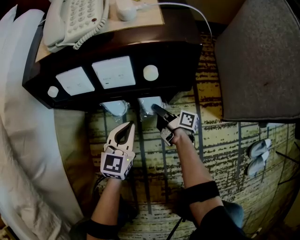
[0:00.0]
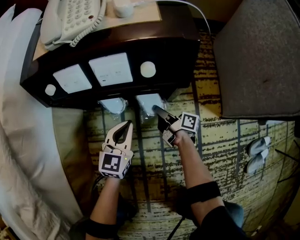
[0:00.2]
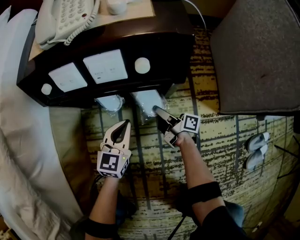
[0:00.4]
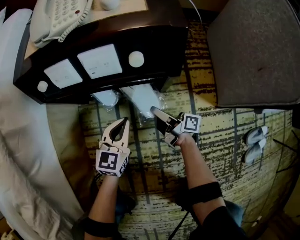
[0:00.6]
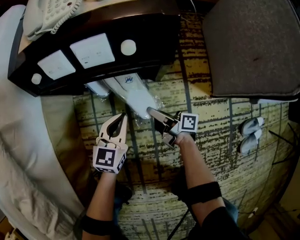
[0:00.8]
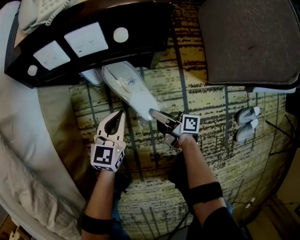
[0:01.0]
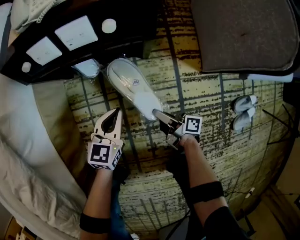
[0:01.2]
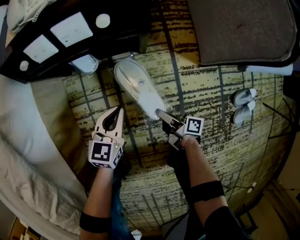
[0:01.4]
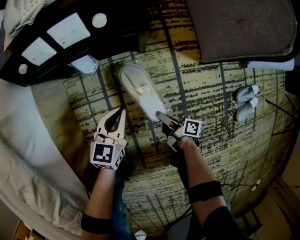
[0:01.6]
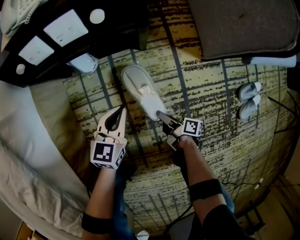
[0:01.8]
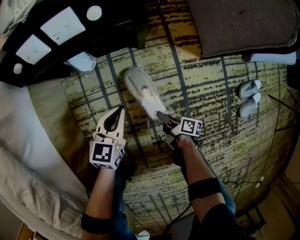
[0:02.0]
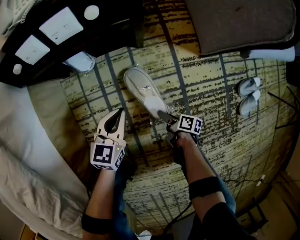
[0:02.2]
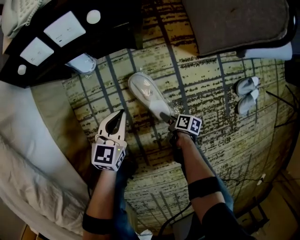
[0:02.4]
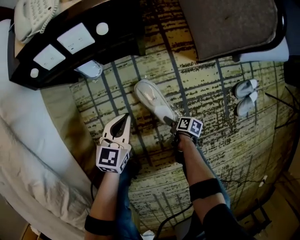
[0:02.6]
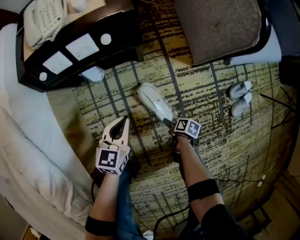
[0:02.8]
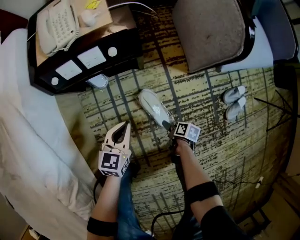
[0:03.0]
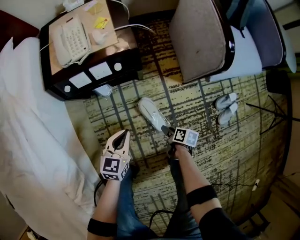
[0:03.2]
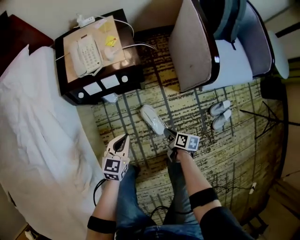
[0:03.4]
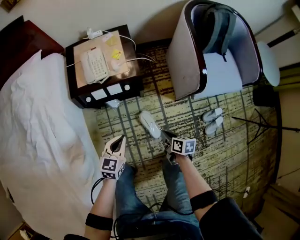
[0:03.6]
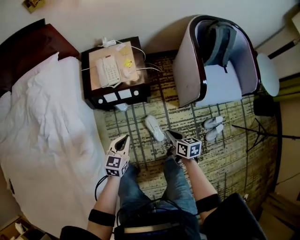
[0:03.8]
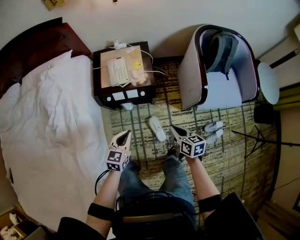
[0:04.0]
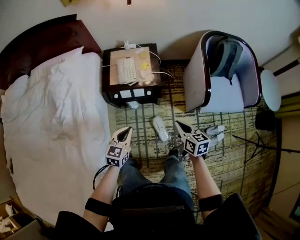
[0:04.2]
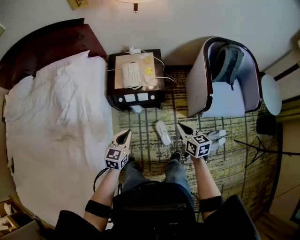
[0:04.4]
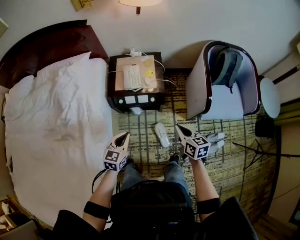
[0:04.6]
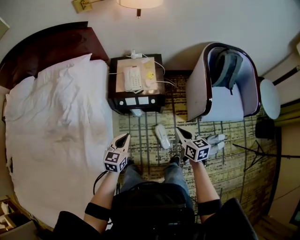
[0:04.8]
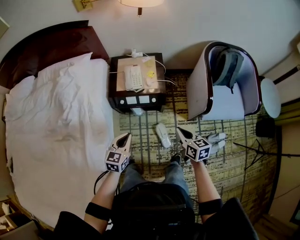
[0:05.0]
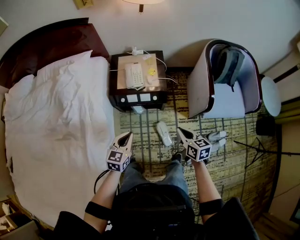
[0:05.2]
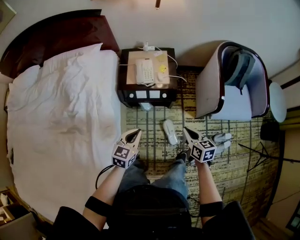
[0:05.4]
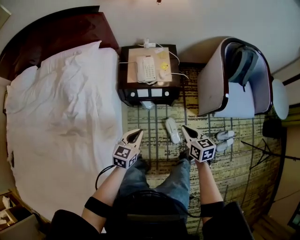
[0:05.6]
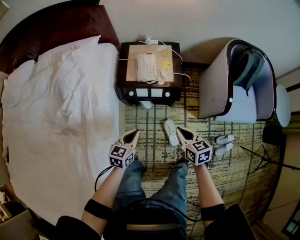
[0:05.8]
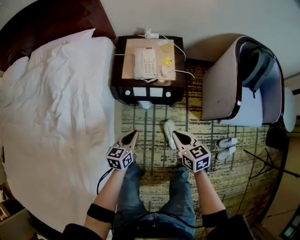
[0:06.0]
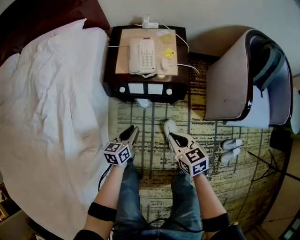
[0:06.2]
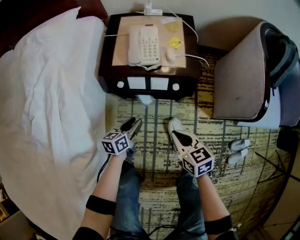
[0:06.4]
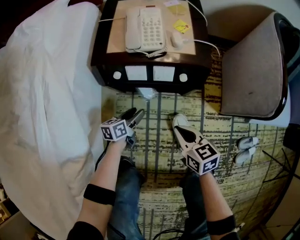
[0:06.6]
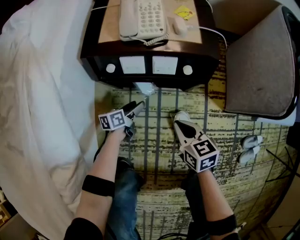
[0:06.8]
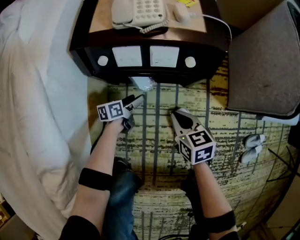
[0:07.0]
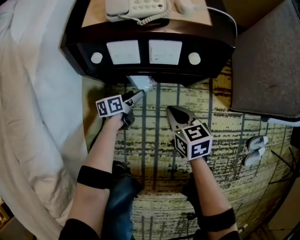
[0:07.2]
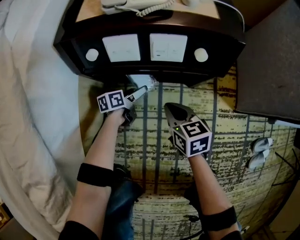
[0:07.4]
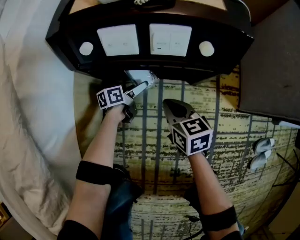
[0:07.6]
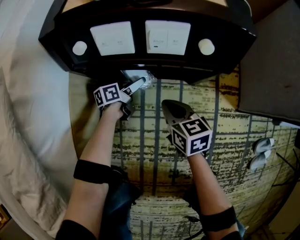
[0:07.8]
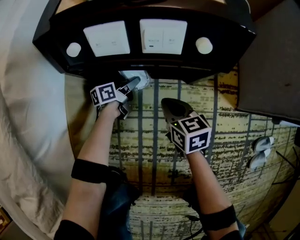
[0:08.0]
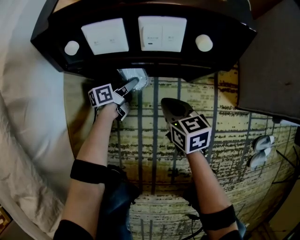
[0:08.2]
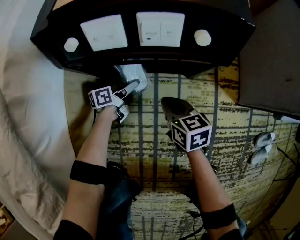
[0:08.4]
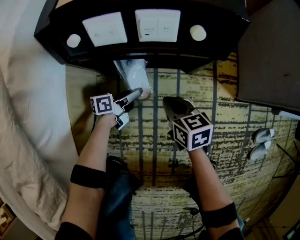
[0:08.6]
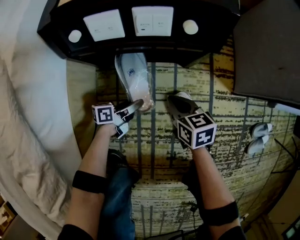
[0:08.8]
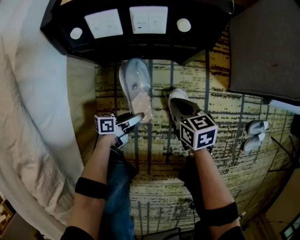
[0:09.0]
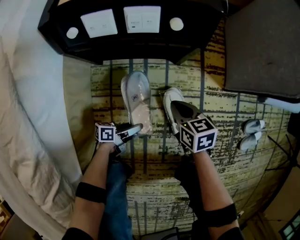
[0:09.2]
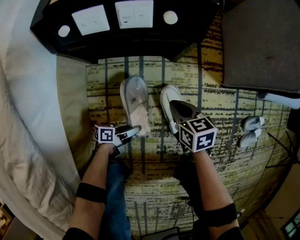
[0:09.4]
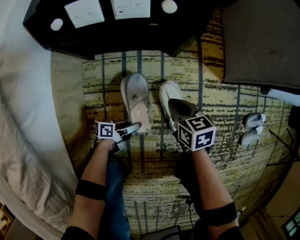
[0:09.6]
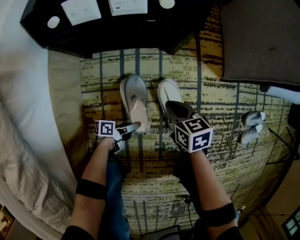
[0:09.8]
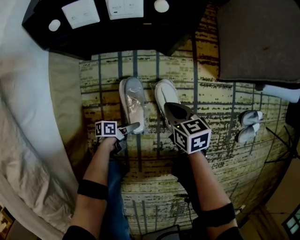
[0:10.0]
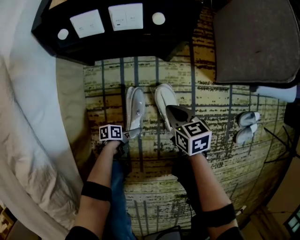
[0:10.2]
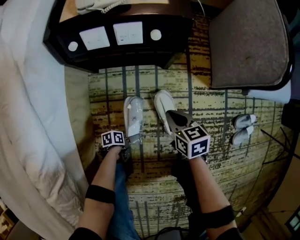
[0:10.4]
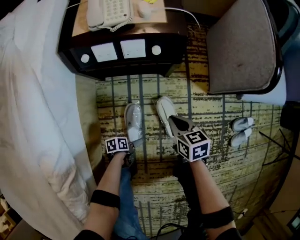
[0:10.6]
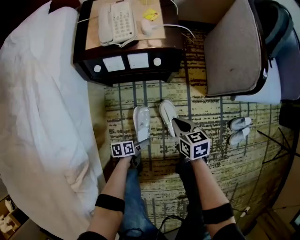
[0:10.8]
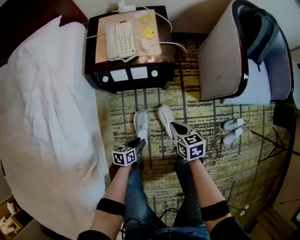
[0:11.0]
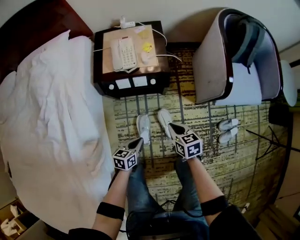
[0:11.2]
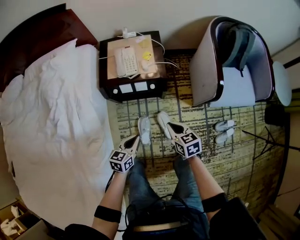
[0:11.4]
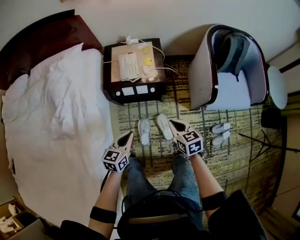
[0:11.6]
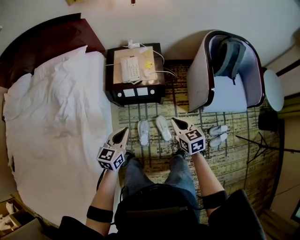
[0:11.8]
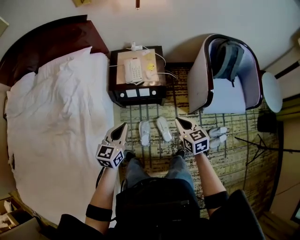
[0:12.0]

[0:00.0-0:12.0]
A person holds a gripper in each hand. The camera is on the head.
0:00.0 to 0:01.6: The right gripper is displaced backward by approximately 30 cm. The left gripper shifts about 15 cm backward.
0:01.6 to 0:03.0: The right gripper moves backward, to the right and upward, roughly 10 cm, points its fingers approximately 40 degrees further downward, and opens up, while the left gripper is displaced upward by some 15 cm.
0:03.0 to 0:04.4: Both grippers travel together upward, about 60 cm. The right gripper rolls counterclockwise, seen from behind, by some 60 degrees, and closes.
0:04.4 to 0:06.0: The right gripper shifts about 20 cm downward and to the left. Meanwhile the left gripper shifts about 20 cm downward, and turns by about 20 degrees.
0:06.0 to 0:07.6: Both grippers travel together downward, roughly 50 cm. The left gripper turns by roughly 40 degrees, and opens.
0:07.6 to 0:09.0: The left gripper goes some 20 cm backward, changes its angle by about 20 degrees, and closes, while the right gripper goes about 10 cm to the right and backward.
0:09.0 to 0:10.4: The right gripper ends up some 10 cm from where it was. The left gripper changes place by some 15 cm, angles its fingers downward, by about 40 degrees, and opens.
0:10.4 to 0:12.0: Both grippers move upward, roughly 70 cm. The left gripper rotates some 80 degrees, and closes.

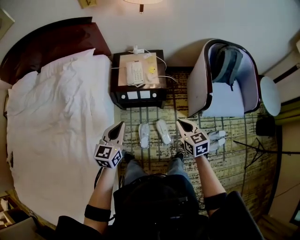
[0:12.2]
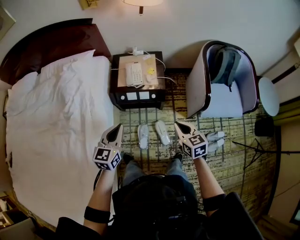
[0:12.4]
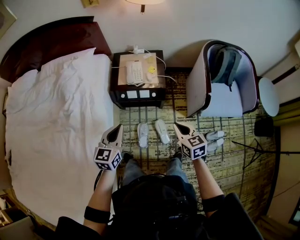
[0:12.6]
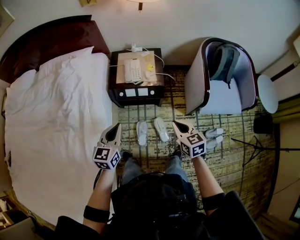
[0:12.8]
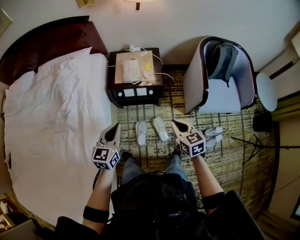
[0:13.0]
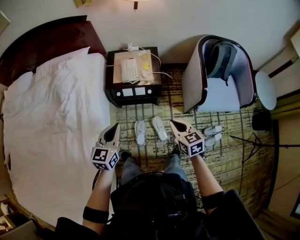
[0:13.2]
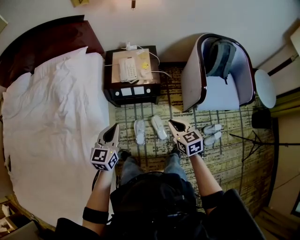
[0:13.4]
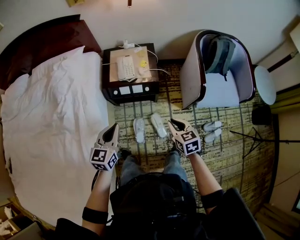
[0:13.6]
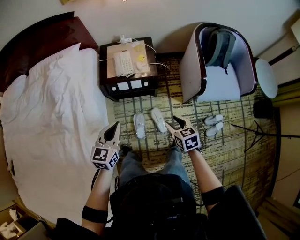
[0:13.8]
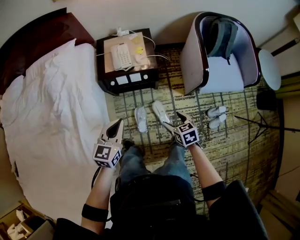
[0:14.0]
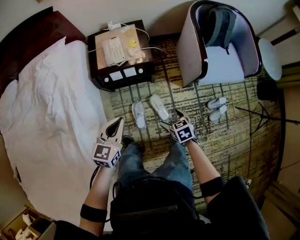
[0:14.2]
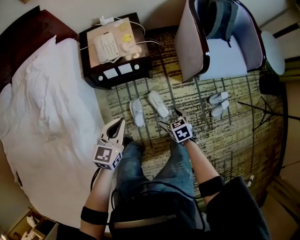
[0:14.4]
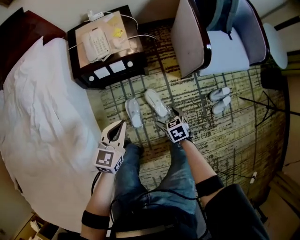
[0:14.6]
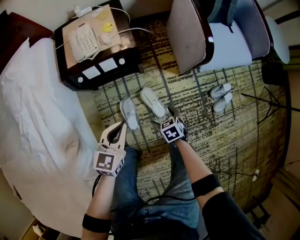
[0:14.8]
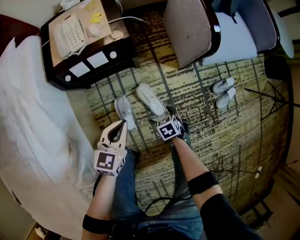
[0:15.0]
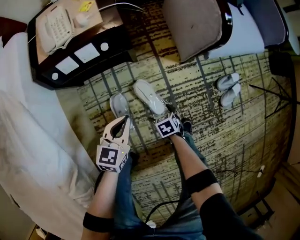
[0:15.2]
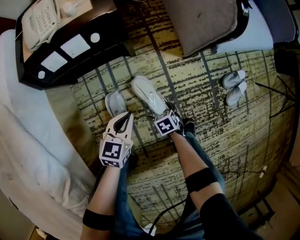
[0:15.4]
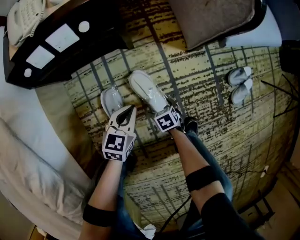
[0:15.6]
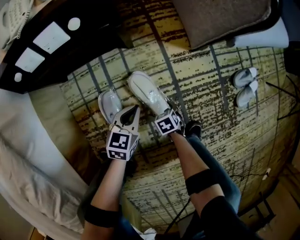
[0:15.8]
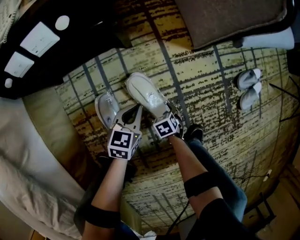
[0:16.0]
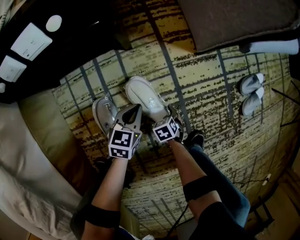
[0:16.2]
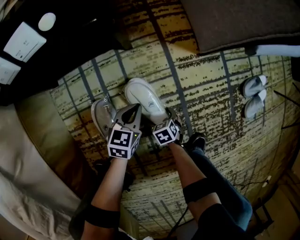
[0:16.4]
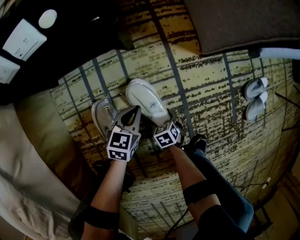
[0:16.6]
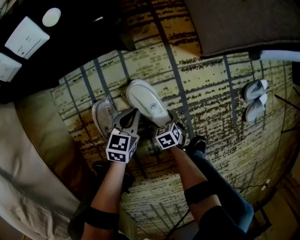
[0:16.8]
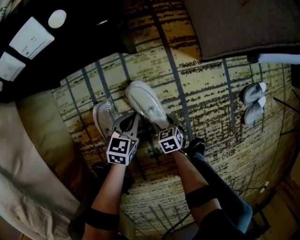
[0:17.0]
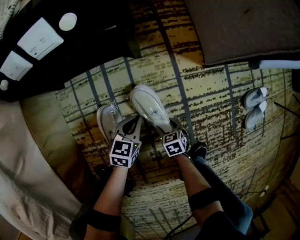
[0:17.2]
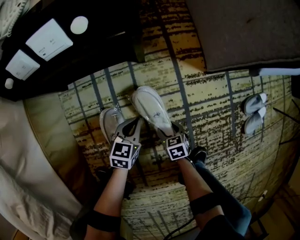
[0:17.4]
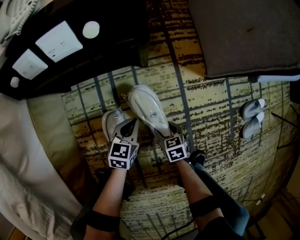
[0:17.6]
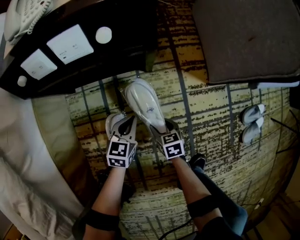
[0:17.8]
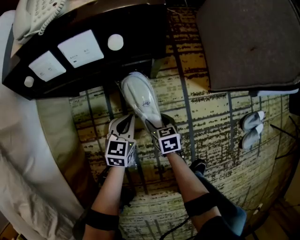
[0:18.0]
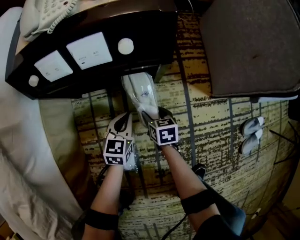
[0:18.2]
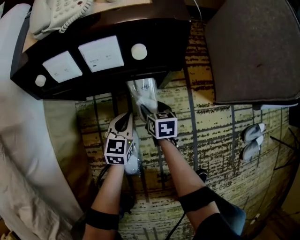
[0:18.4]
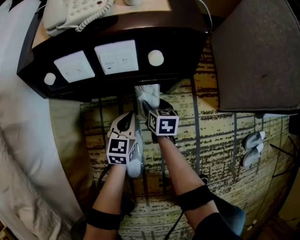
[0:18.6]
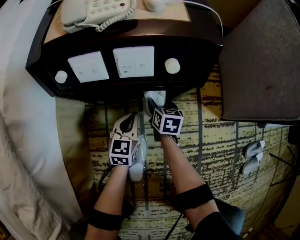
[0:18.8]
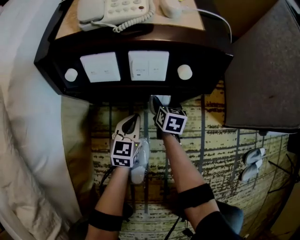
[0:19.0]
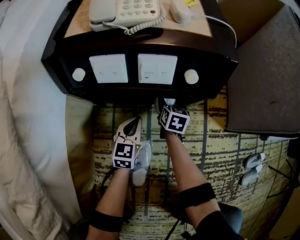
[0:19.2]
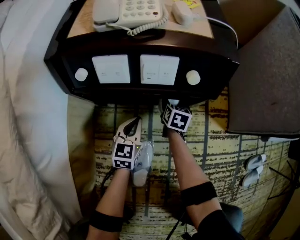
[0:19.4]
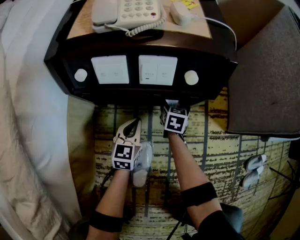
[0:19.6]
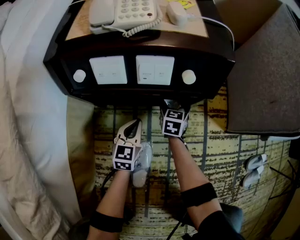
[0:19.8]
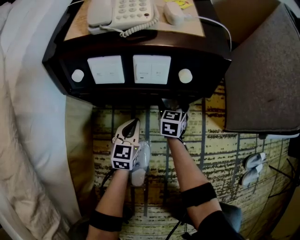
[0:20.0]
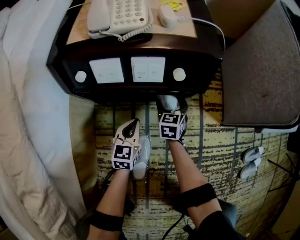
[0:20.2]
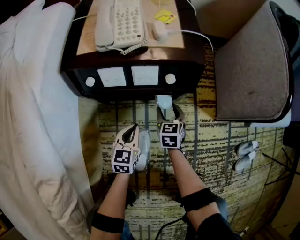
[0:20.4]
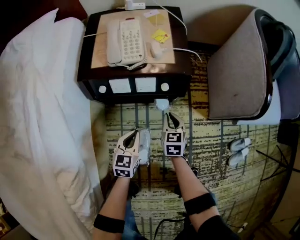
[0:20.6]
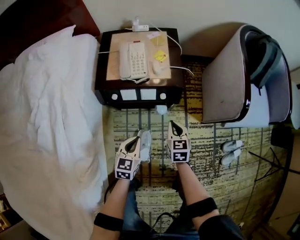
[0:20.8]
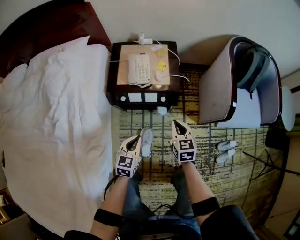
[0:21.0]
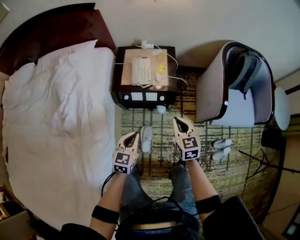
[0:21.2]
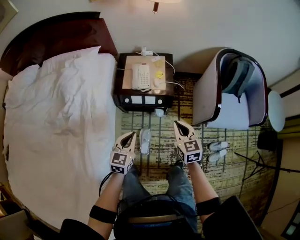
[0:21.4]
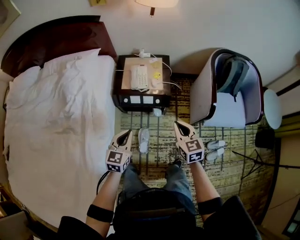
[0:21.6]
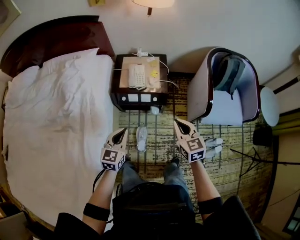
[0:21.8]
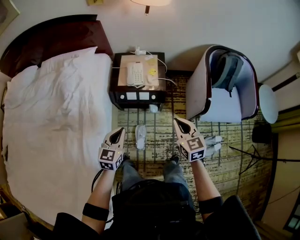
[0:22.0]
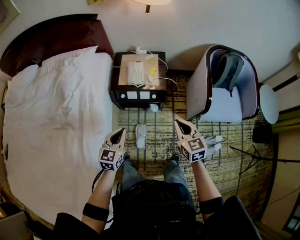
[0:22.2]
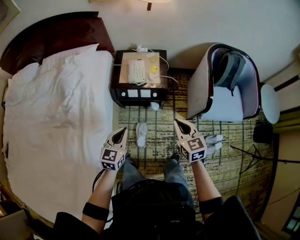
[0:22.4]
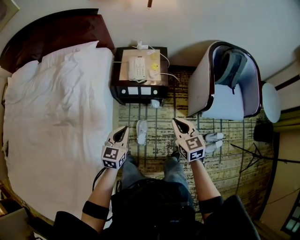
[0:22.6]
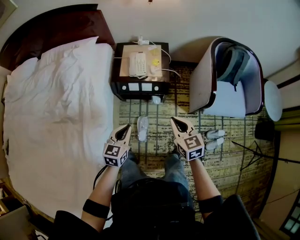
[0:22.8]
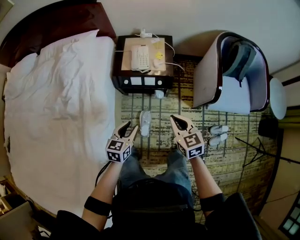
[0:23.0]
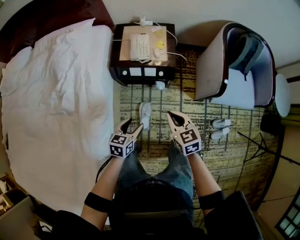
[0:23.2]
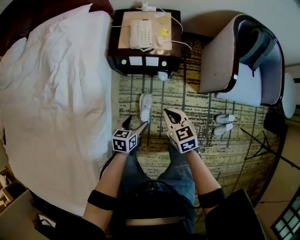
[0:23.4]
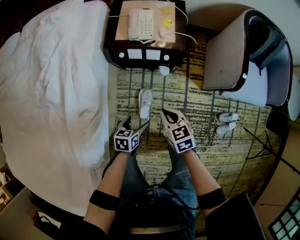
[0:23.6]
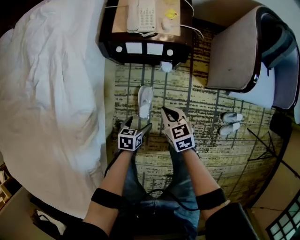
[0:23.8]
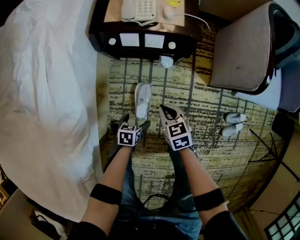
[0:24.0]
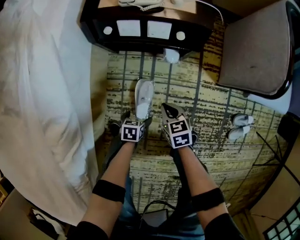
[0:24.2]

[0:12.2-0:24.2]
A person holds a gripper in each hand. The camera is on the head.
0:12.2 to 0:13.8: The right gripper goes some 10 cm downward, and opens its fingers.
0:13.8 to 0:15.2: Both grippers move downward, approximately 50 cm. The right gripper rotates roughly 30 degrees, and opens, while the left gripper swivels some 20 degrees.
0:15.2 to 0:16.6: The two grippers go some 35 cm downward.
0:16.6 to 0:18.2: The right gripper goes about 30 cm forward, upward and to the left, turns by about 20 degrees, and closes up, while the left gripper shifts some 15 cm to the left, forward and upward, and turns by roughly 20 degrees.
0:18.2 to 0:19.8: The left gripper shifts roughly 10 cm to the left; the right gripper moves forward, approximately 15 cm, and changes its angle by approximately 30 degrees.
0:19.8 to 0:21.2: The grippers both shift upward by about 60 cm. The right gripper changes its angle by approximately 20 degrees, and closes.
0:21.2 to 0:22.6: The two grippers go some 15 cm upward and backward.
0:22.6 to 0:24.2: The two grippers go roughly 60 cm downward. The left gripper tilts its fingers some 40 degrees downward, and opens up, while the right gripper turns by approximately 30 degrees.
